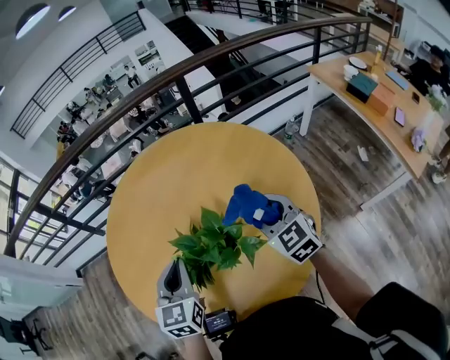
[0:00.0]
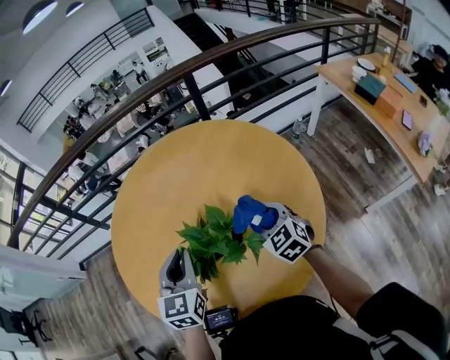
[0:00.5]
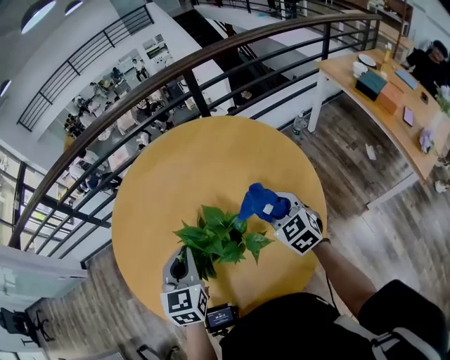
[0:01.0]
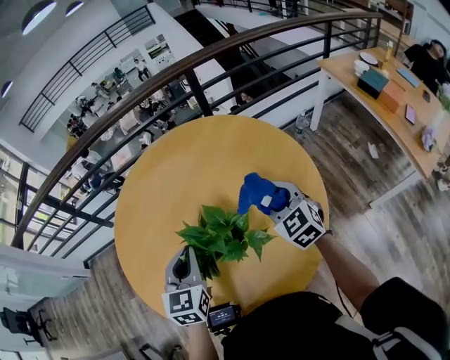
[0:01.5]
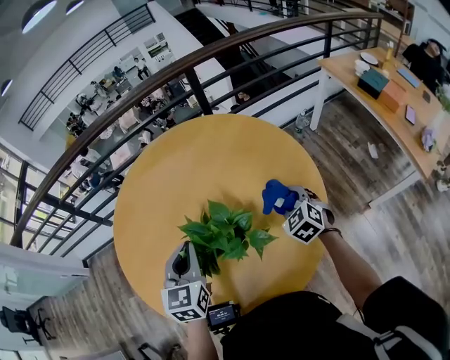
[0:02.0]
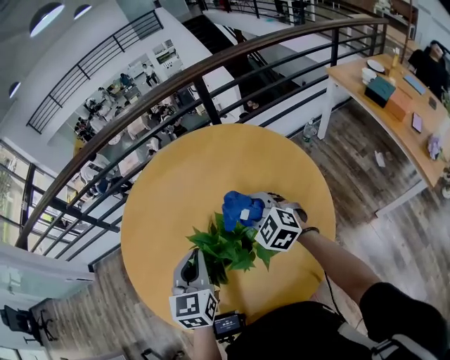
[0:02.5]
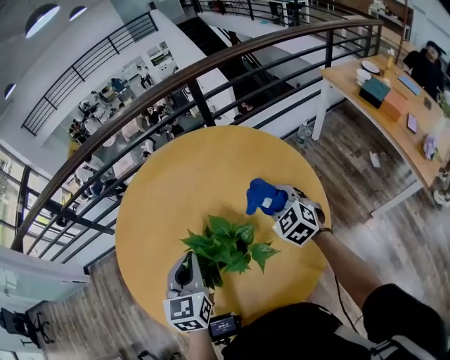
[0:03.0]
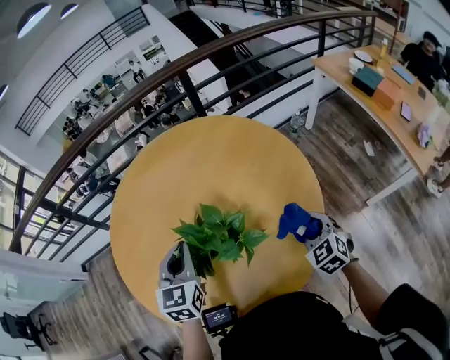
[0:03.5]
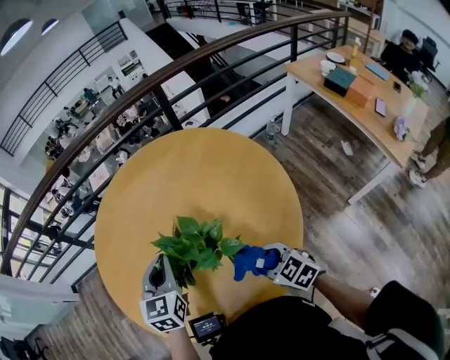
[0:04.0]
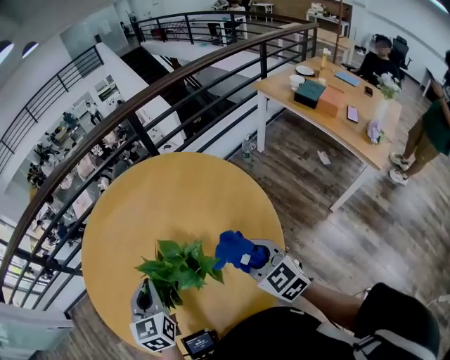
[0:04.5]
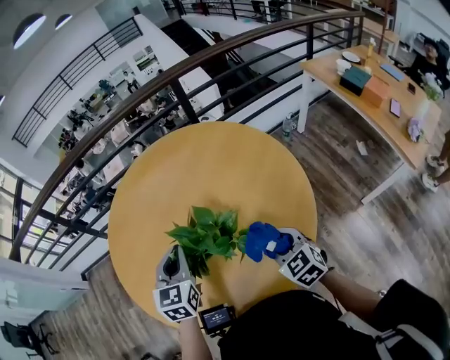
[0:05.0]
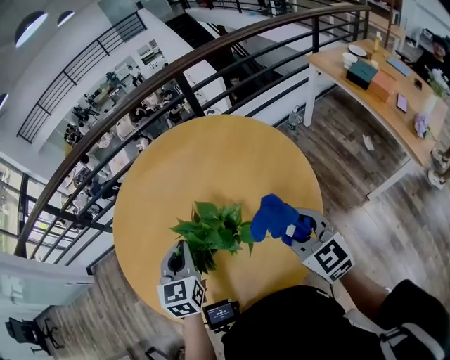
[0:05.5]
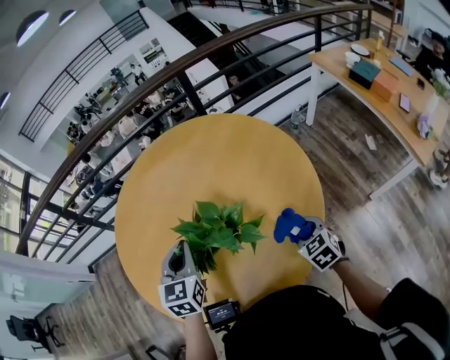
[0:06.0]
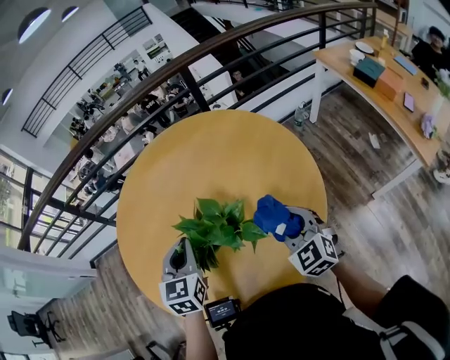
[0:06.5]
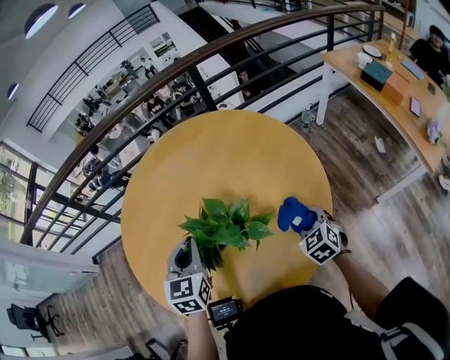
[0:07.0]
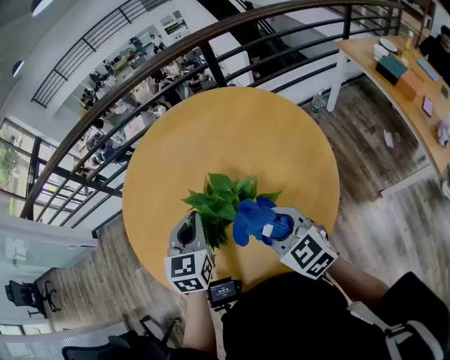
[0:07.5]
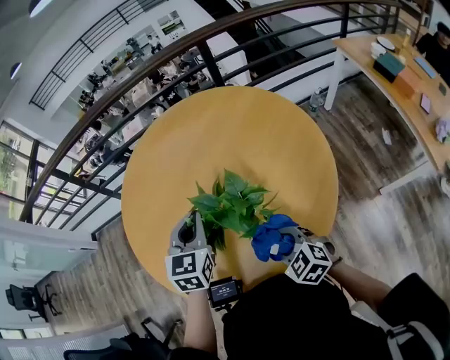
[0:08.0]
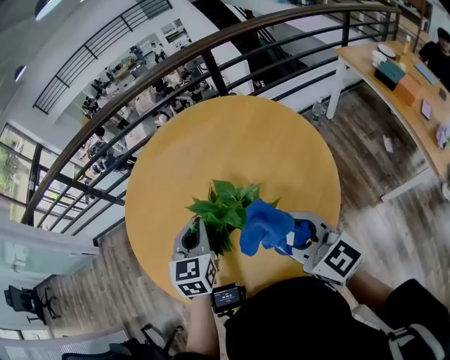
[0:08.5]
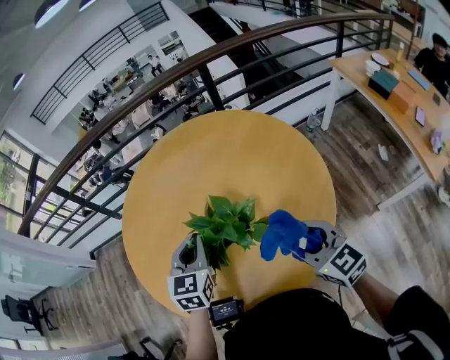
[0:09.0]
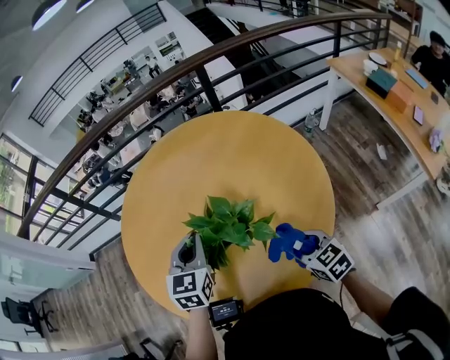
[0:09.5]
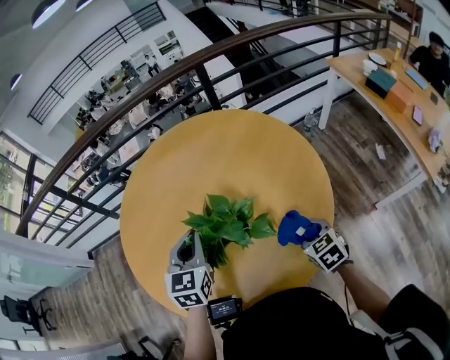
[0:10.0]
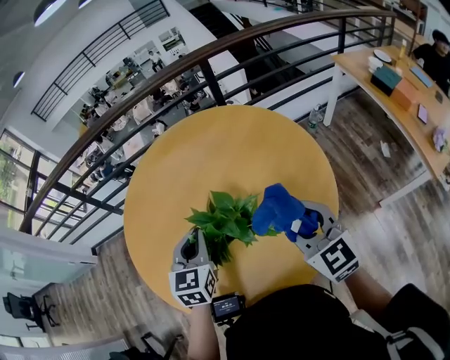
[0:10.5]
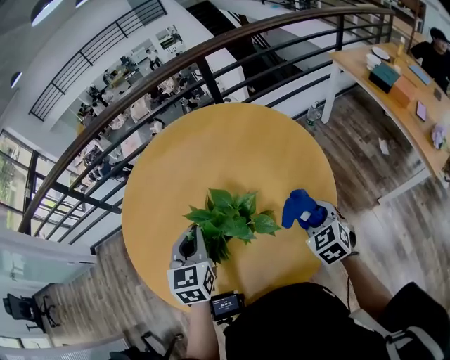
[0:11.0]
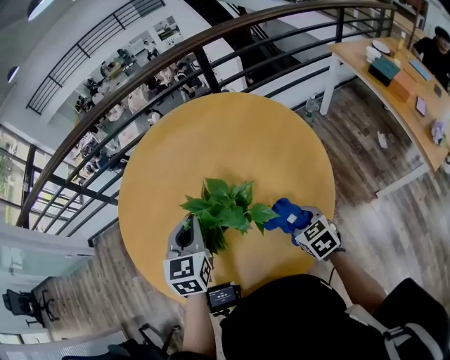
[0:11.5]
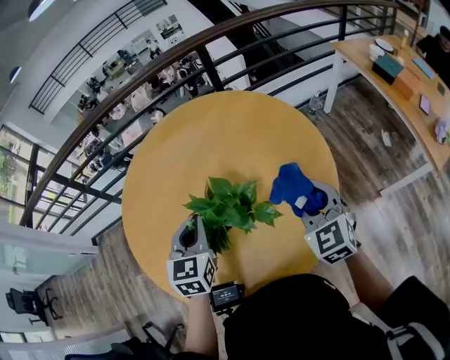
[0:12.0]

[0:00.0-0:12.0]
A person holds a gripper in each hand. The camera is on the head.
0:00.0 to 0:02.0: The right gripper moves up and down over roughly 10 cm, changing direction 2 times, and changes its angle by about 20 degrees.
0:02.0 to 0:04.0: The right gripper moves backward and to the left, some 20 cm, and turns by roughly 30 degrees.
0:04.0 to 0:06.0: The right gripper goes up and down, roughly 15 cm each way, reversing 3 times, and turns by some 20 degrees.
0:06.0 to 0:08.0: The right gripper swings left and right, some 15 cm each way, with 2 reversals, and swivels some 30 degrees.
0:08.0 to 0:10.0: The right gripper goes roughly 15 cm to the right, travels upward and back again, roughly 20 cm each way, and turns by approximately 30 degrees.
0:10.0 to 0:12.0: The right gripper swings up and down, about 20 cm each way, with 2 reversals, and swivels some 30 degrees.

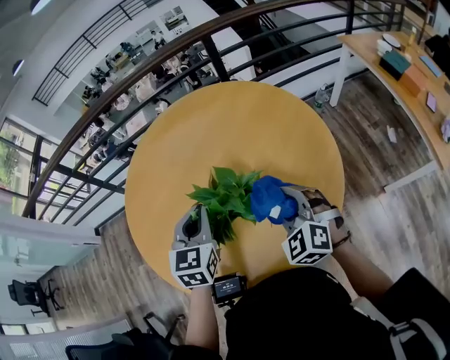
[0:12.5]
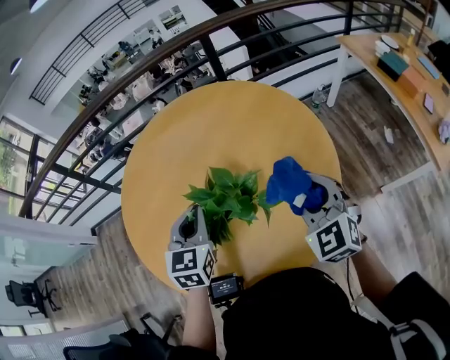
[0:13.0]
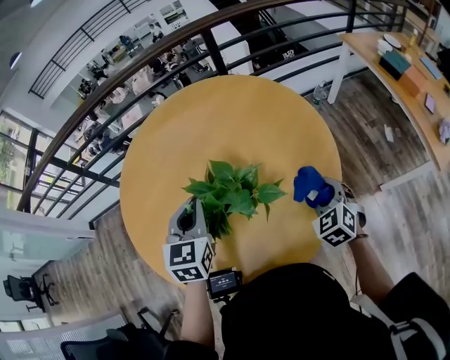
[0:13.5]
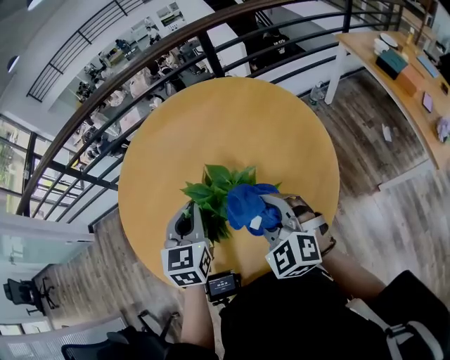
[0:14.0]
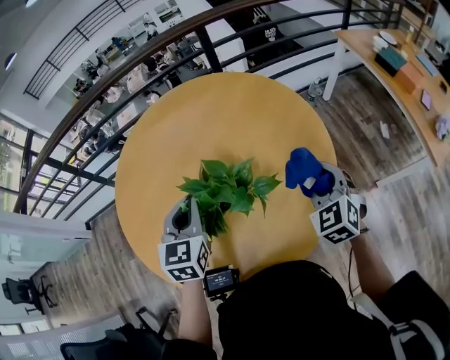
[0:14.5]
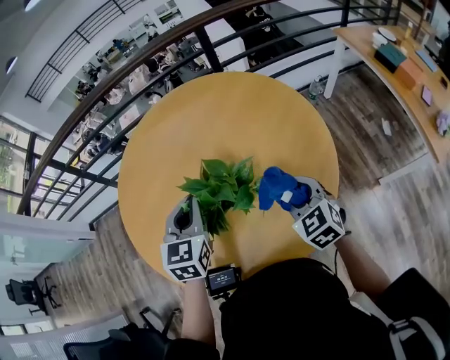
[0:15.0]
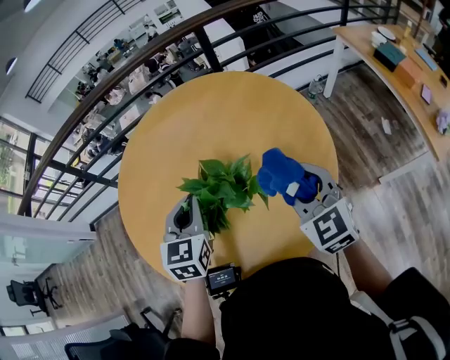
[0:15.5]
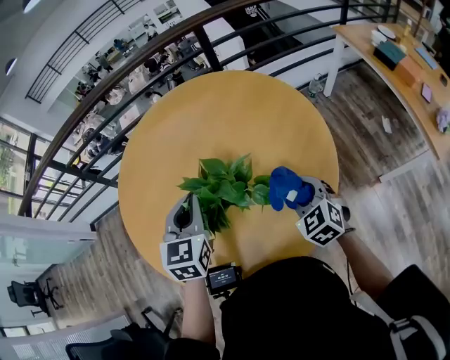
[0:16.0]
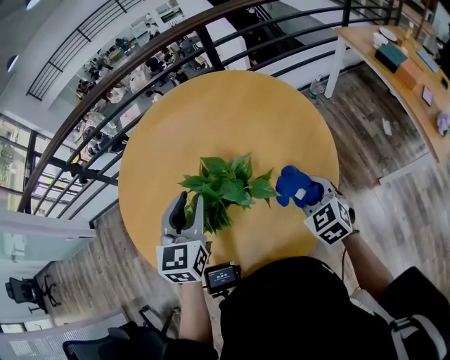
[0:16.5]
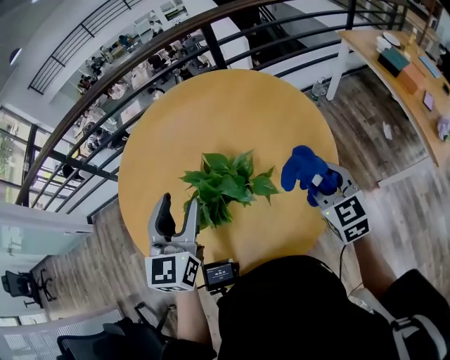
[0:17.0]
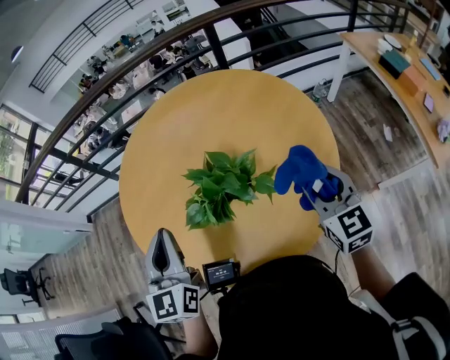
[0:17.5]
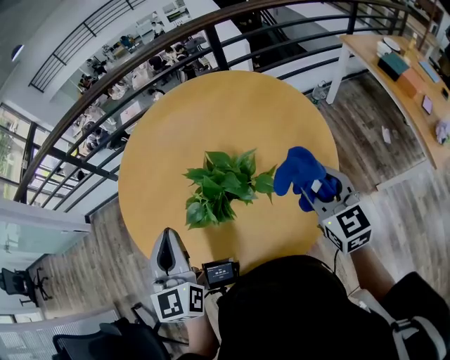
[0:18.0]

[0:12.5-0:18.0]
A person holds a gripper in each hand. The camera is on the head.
0:12.5 to 0:14.5: The right gripper swings left and right, roughly 15 cm each way, with 2 reversals.
0:14.5 to 0:16.0: The right gripper shifts some 10 cm downward and to the left.
0:16.0 to 0:18.0: The right gripper moves upward, approximately 10 cm, and rotates some 30 degrees. The left gripper goes roughly 15 cm backward, to the left and upward, swivels some 20 degrees, and opens, then closes once more.

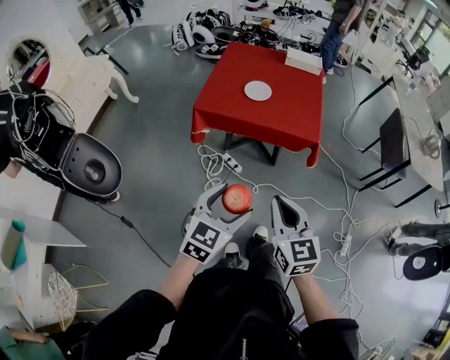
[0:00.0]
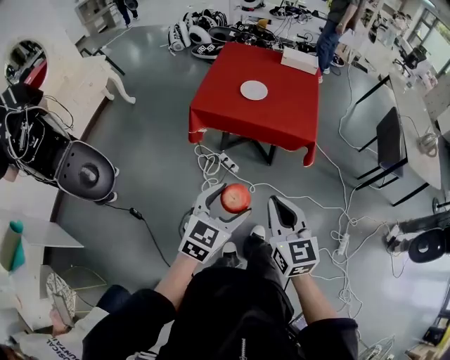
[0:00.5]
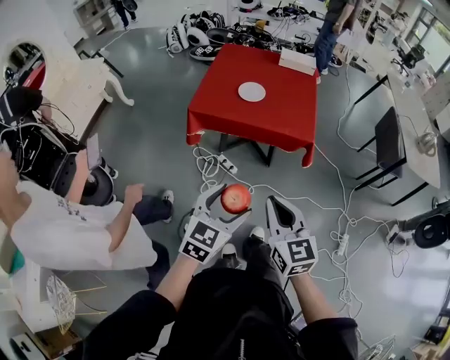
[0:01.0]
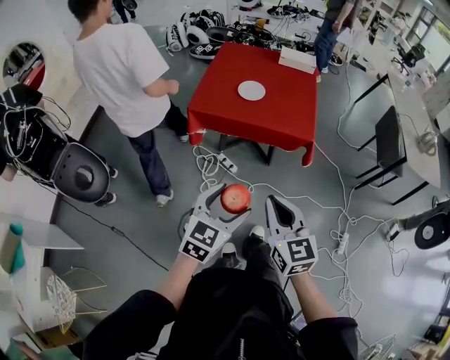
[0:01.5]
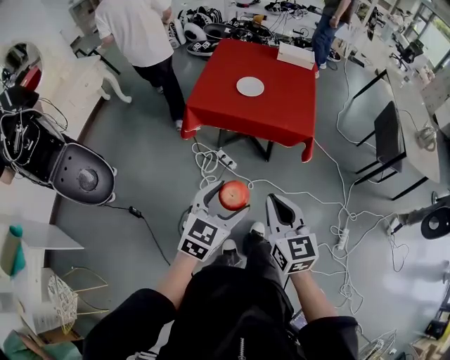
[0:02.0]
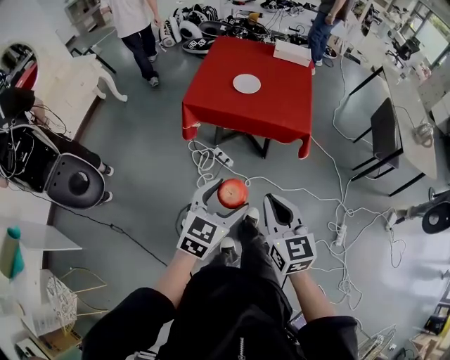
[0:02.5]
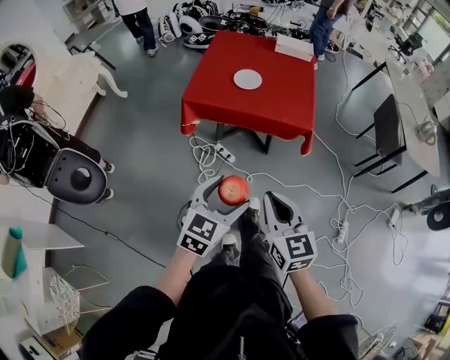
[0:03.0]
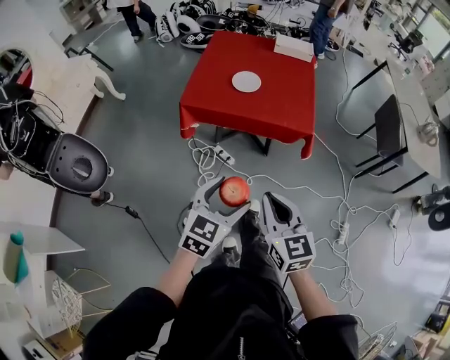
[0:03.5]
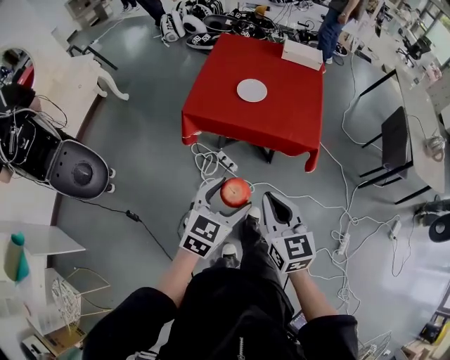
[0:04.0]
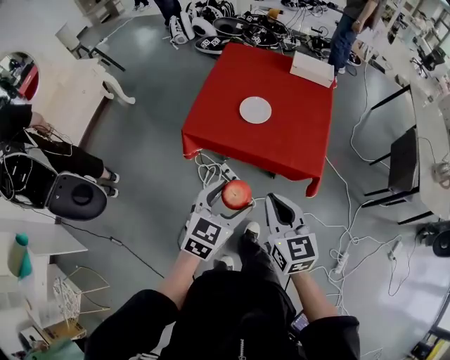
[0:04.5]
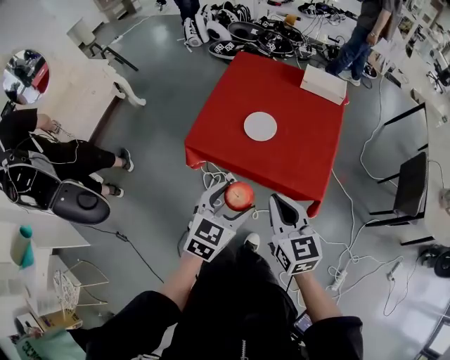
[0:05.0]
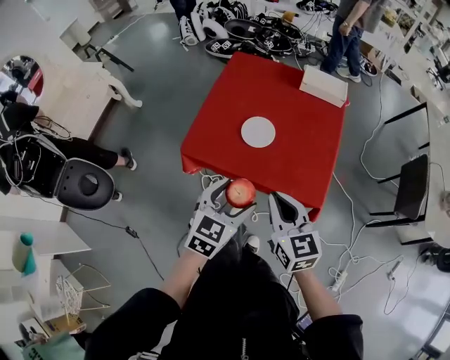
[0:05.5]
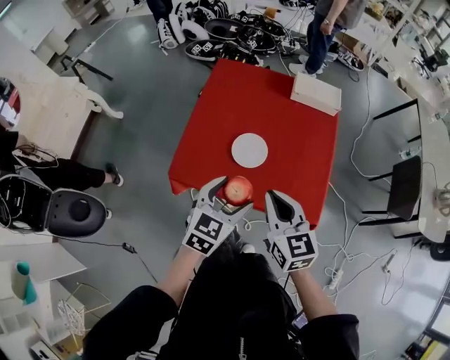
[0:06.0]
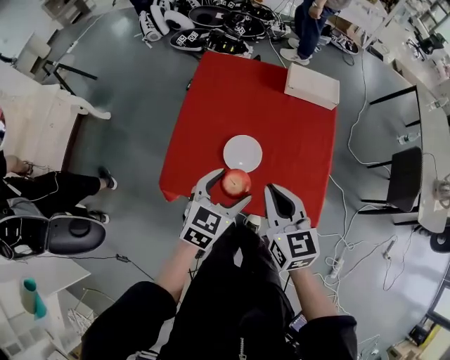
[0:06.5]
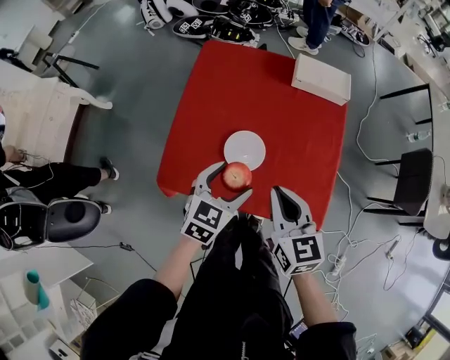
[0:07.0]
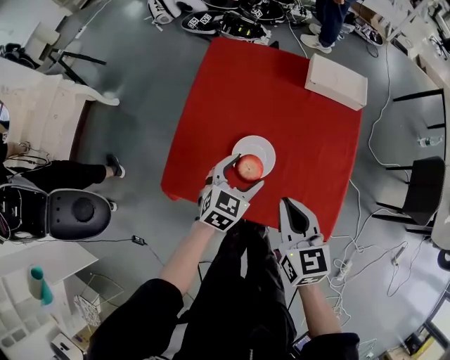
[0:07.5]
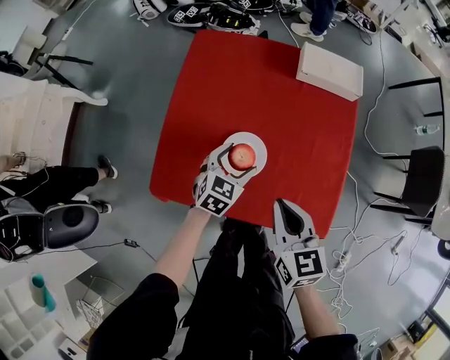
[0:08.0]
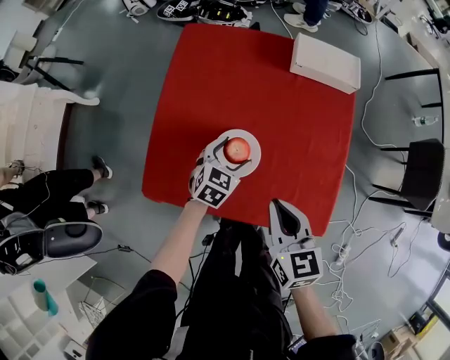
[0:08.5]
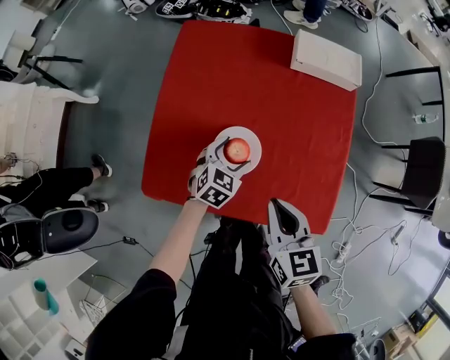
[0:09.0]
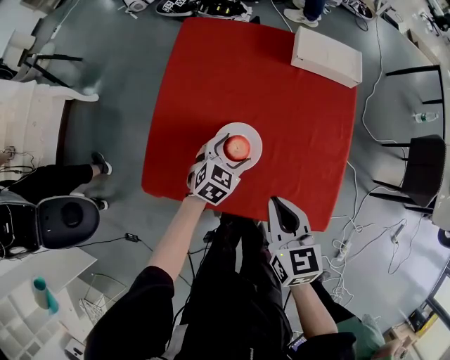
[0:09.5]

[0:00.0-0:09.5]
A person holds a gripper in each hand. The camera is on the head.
0:00.0 to 0:02.0: The grippers move only a little.
0:02.0 to 0:04.0: The two grippers go about 10 cm forward.
0:04.0 to 0:05.5: The grippers both shift forward by about 25 cm.
0:05.5 to 0:07.5: Both grippers travel together forward and downward, roughly 25 cm.
0:07.5 to 0:09.5: The left gripper heads downward, covering about 10 cm. Meanwhile the right gripper goes some 5 cm downward.
